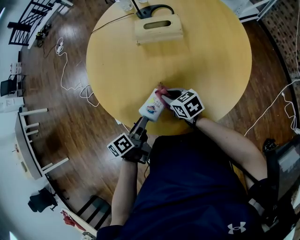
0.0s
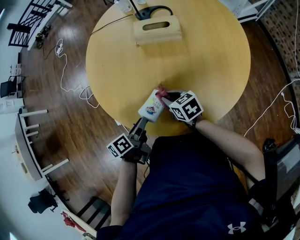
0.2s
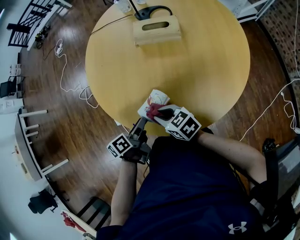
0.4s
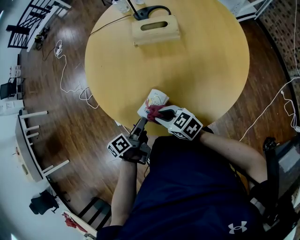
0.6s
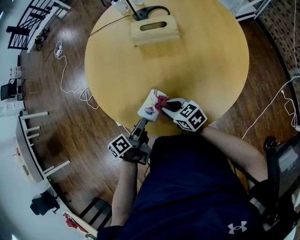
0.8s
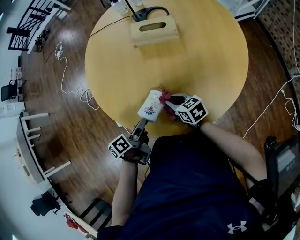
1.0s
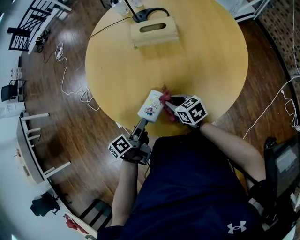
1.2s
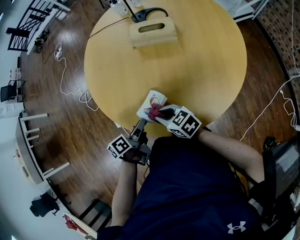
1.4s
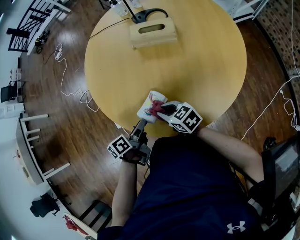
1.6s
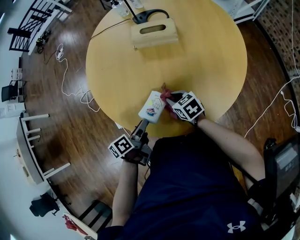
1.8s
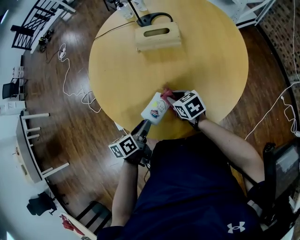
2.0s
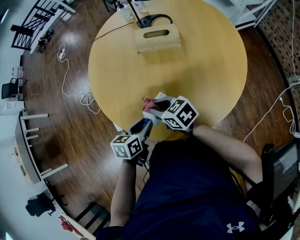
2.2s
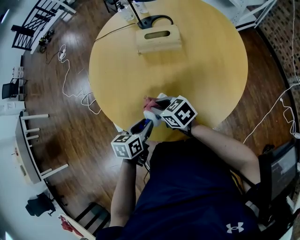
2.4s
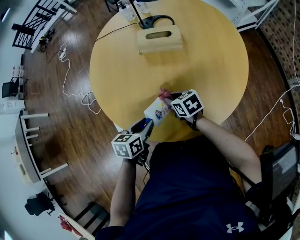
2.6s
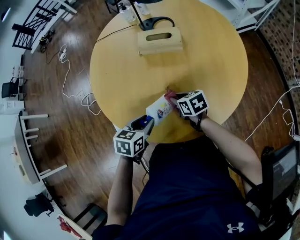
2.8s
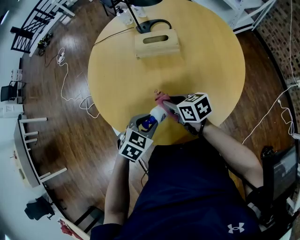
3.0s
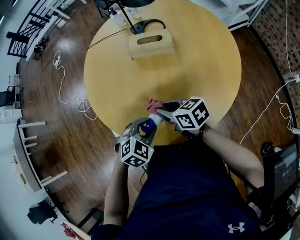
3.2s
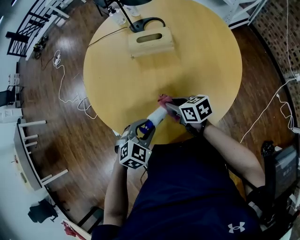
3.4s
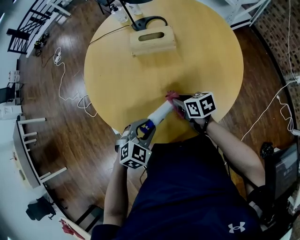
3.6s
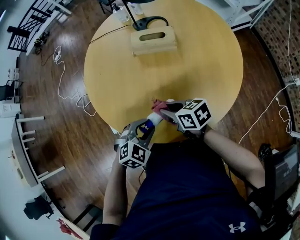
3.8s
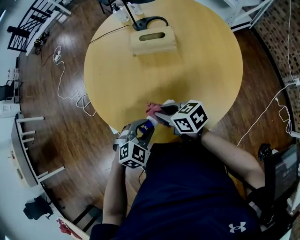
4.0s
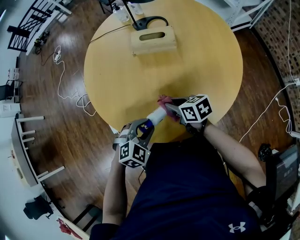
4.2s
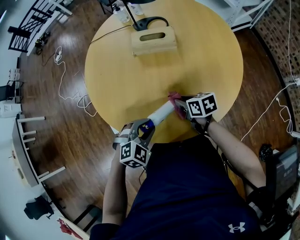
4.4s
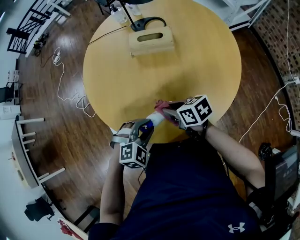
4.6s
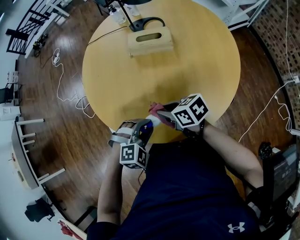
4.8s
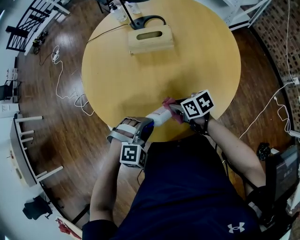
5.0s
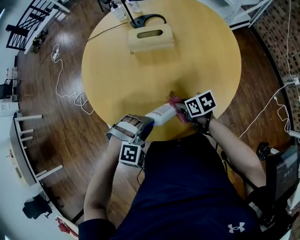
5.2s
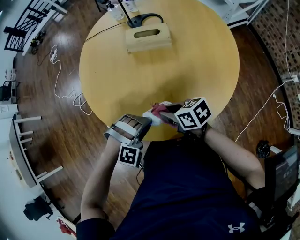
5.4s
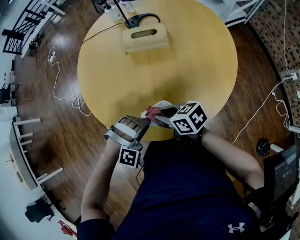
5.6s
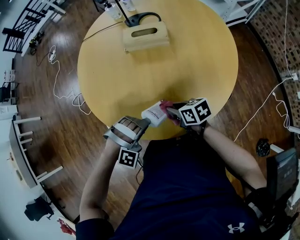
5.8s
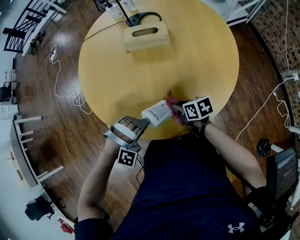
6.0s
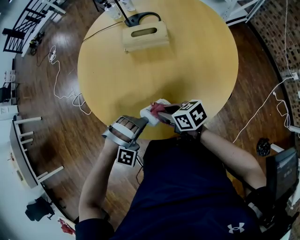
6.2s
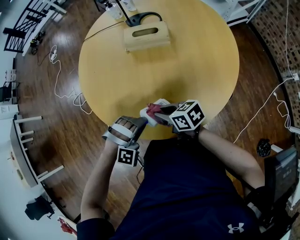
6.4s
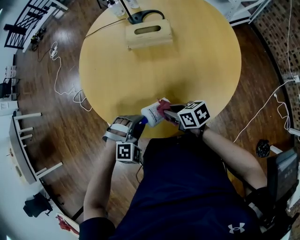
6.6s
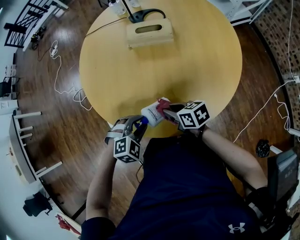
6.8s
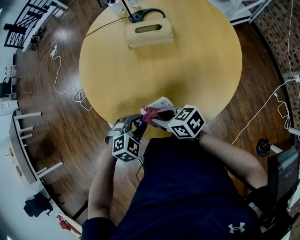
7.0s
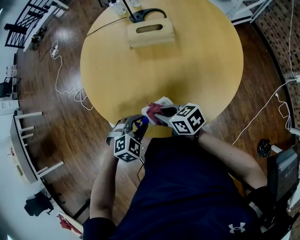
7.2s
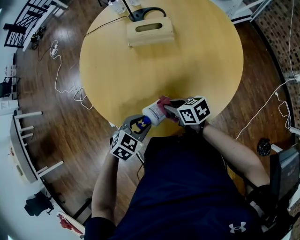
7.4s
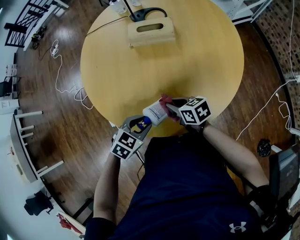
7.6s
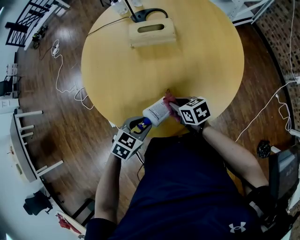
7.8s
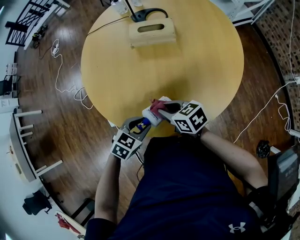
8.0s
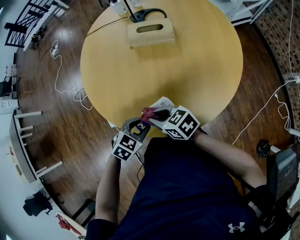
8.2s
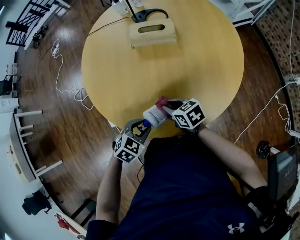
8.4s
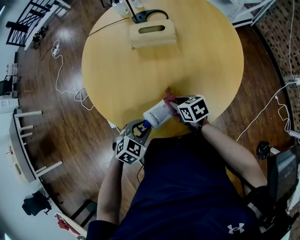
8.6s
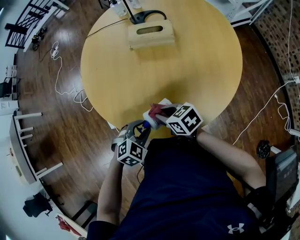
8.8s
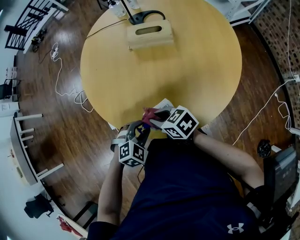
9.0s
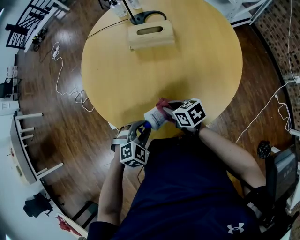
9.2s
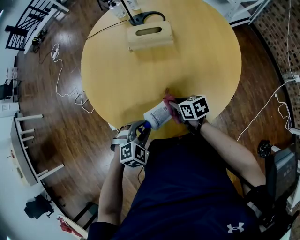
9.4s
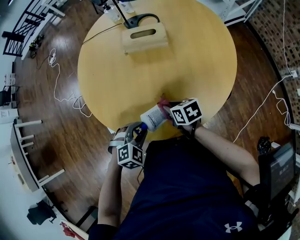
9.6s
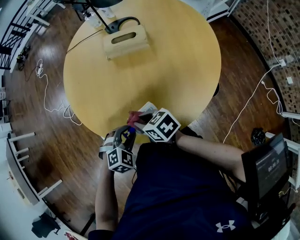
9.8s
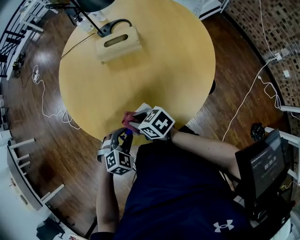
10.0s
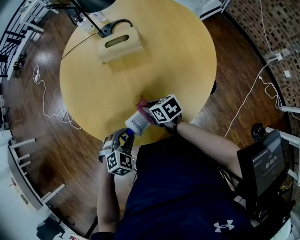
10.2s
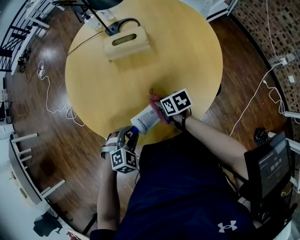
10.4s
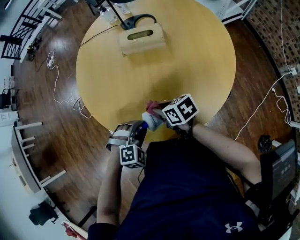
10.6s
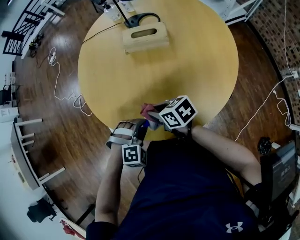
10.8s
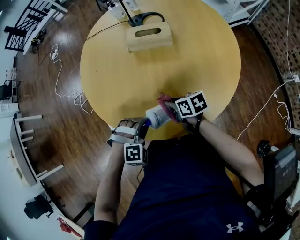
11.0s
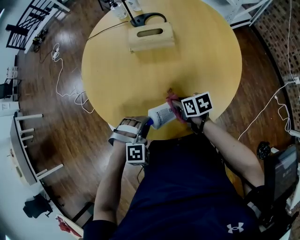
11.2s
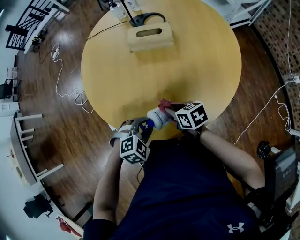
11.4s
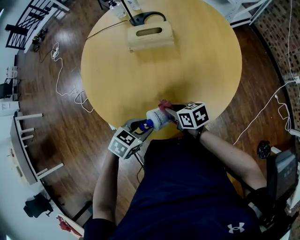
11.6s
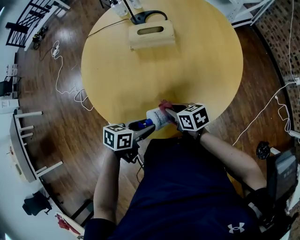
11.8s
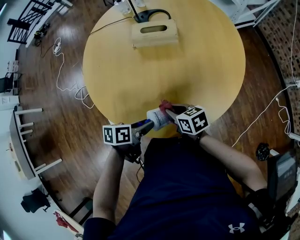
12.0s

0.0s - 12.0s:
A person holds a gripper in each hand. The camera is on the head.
0.0s - 1.6s: The right gripper goes left and right, roughly 5 cm each way, reversing 2 times.
1.6s - 3.0s: The left gripper is displaced to the right by some 10 cm, and twists some 80 degrees clockwise, seen from behind; the right gripper swings up and down, approximately 10 cm each way, with 3 reversals.
3.0s - 4.4s: The right gripper swings left and right, roughly 10 cm each way, with 2 reversals. The left gripper changes its angle by some 30 degrees.
4.4s - 6.0s: The right gripper swings up and down, roughly 10 cm each way, with 3 reversals. The left gripper rotates around the line of its fingers by roughly 60 degrees, clockwise from behind.
6.0s - 7.6s: The left gripper rolls counterclockwise, seen from behind, by approximately 90 degrees.
7.6s - 9.0s: The left gripper swivels some 30 degrees. Meanwhile the right gripper goes up and down, approximately 10 cm each way, reversing 2 times.
9.0s - 10.4s: The right gripper swings left and right, about 10 cm each way, with 2 reversals, and swivels approximately 30 degrees.
10.4s - 12.0s: The left gripper rolls counterclockwise, seen from behind, by some 90 degrees.

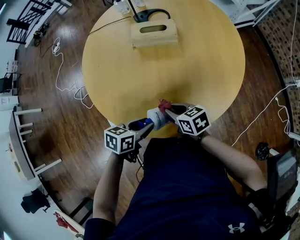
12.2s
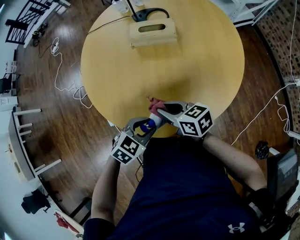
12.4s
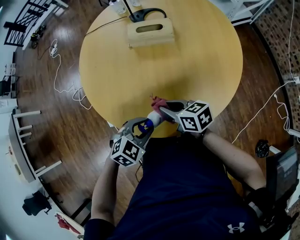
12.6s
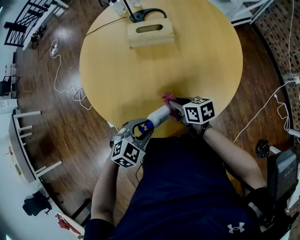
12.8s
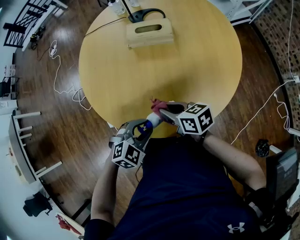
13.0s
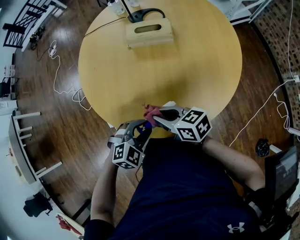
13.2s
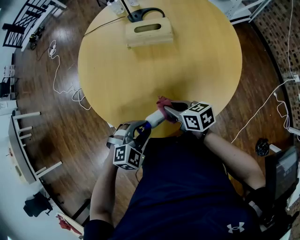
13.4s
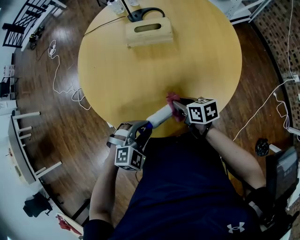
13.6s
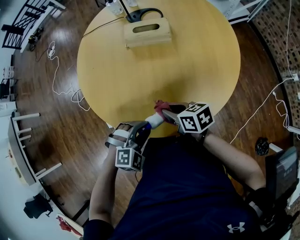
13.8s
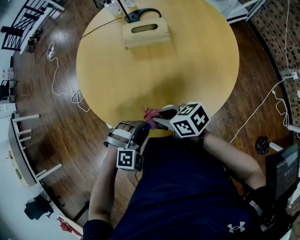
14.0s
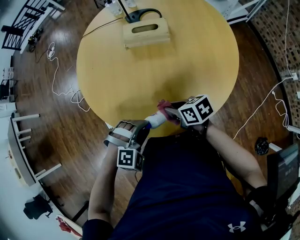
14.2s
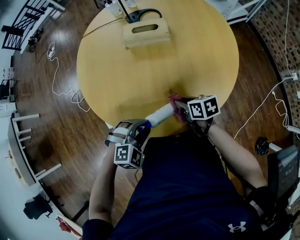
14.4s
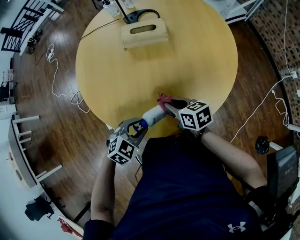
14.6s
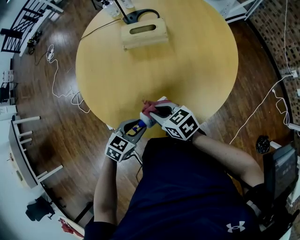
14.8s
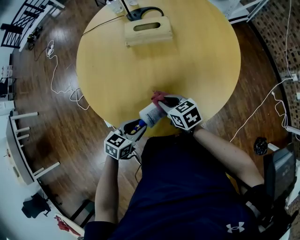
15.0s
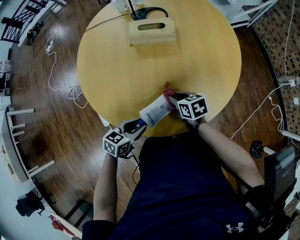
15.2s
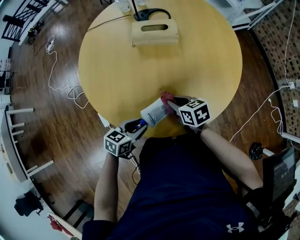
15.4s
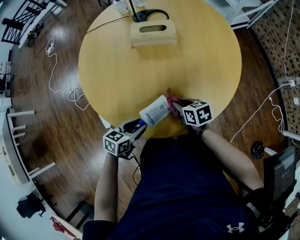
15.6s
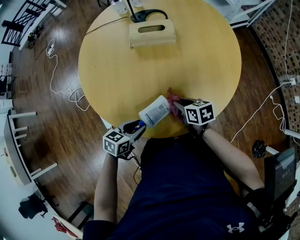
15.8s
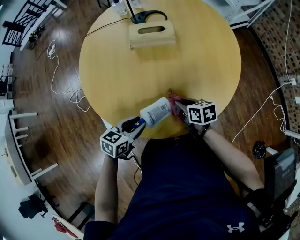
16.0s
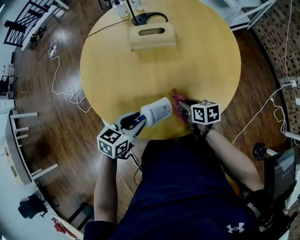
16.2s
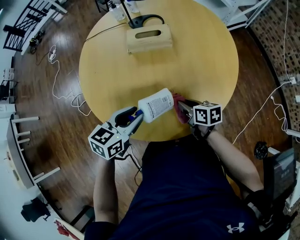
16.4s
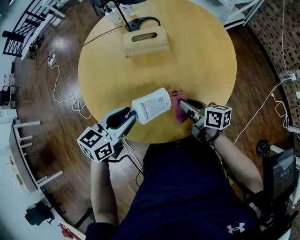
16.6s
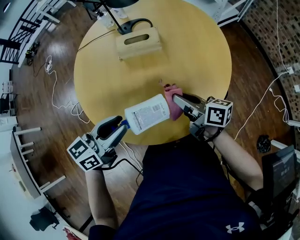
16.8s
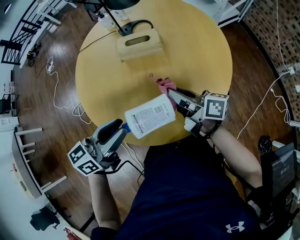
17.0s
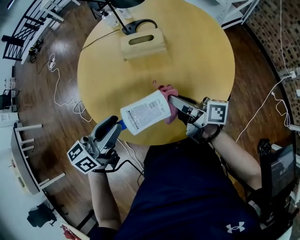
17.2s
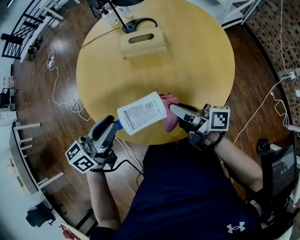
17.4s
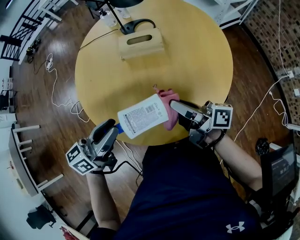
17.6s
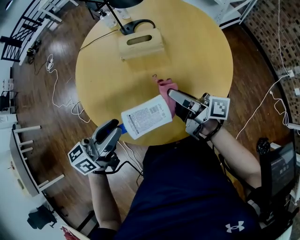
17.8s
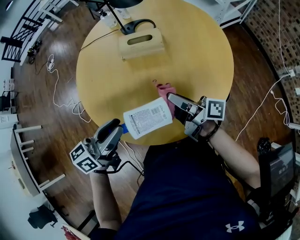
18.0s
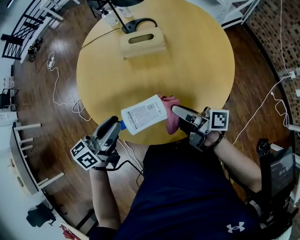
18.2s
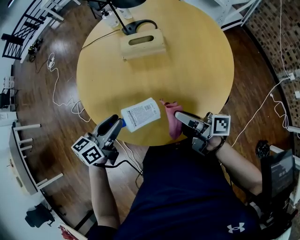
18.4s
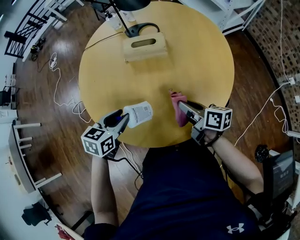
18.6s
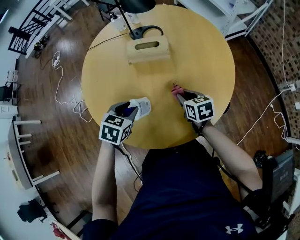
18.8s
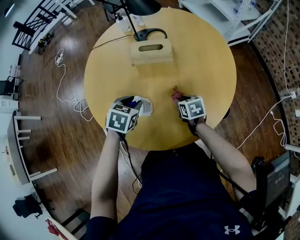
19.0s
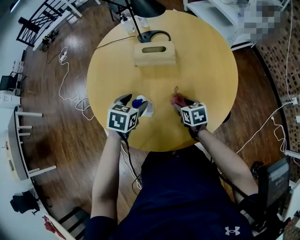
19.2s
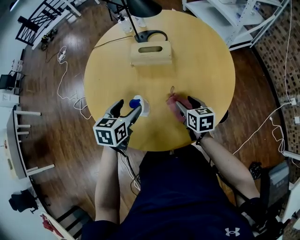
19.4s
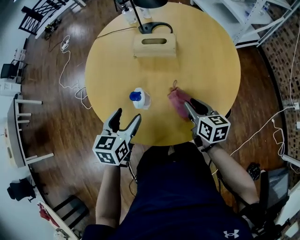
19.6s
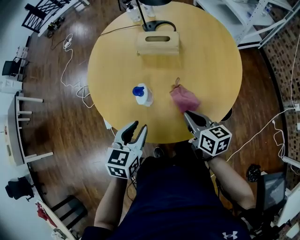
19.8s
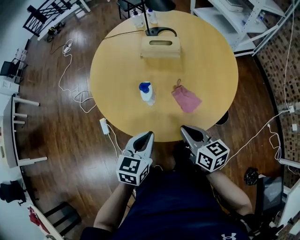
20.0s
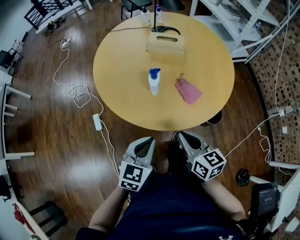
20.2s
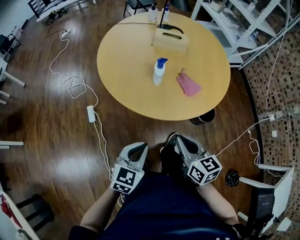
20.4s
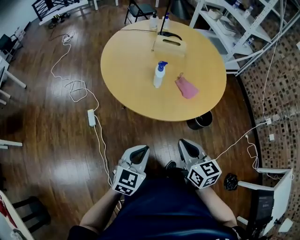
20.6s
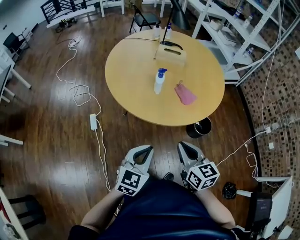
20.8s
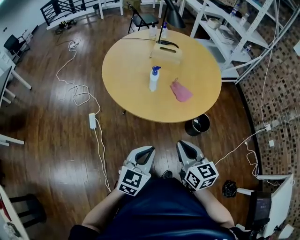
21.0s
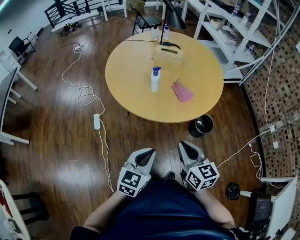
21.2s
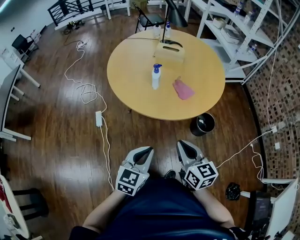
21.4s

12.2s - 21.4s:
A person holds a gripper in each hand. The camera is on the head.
12.2s - 13.8s: The left gripper twists approximately 80 degrees clockwise, seen from behind. The right gripper swings up and down, roughly 10 cm each way, with 4 reversals.
13.8s - 15.2s: The right gripper moves up and down over approximately 10 cm, changing direction 3 times, while the left gripper moves about 5 cm, and twists some 70 degrees counterclockwise, seen from behind.
15.2s - 16.8s: Both grippers move upward, approximately 20 cm. The right gripper tilts its fingers some 40 degrees upward.
16.8s - 18.4s: The left gripper moves roughly 5 cm, while the right gripper goes some 5 cm backward, and swivels some 30 degrees.
18.4s - 19.8s: The right gripper reaches about 15 cm downward, then returns, twists roughly 40 degrees counterclockwise, seen from behind, and opens and closes again; the left gripper travels to the right and backward by about 10 cm, rotates approximately 30 degrees, and opens and closes again.
19.8s - 21.4s: Both grippers move backward, roughly 30 cm. The right gripper turns by roughly 20 degrees. The left gripper closes.

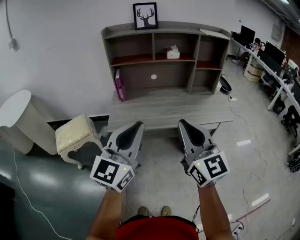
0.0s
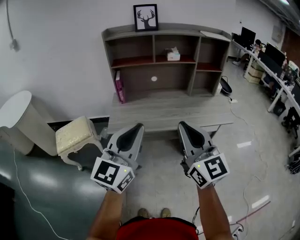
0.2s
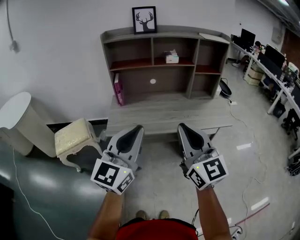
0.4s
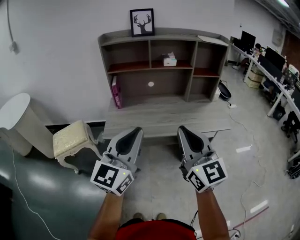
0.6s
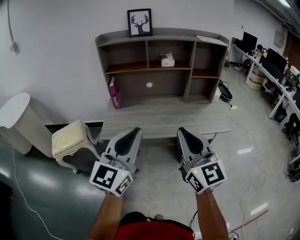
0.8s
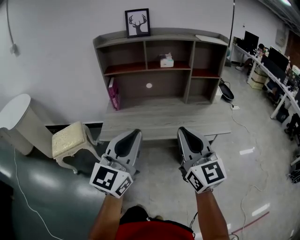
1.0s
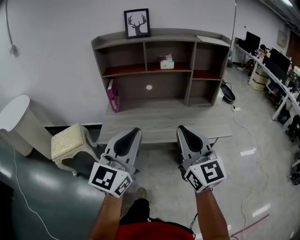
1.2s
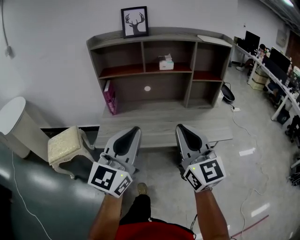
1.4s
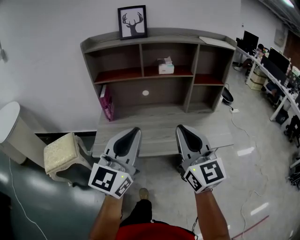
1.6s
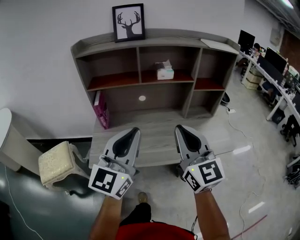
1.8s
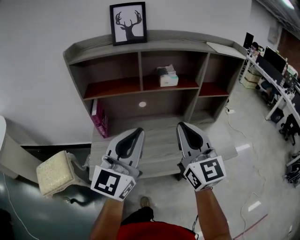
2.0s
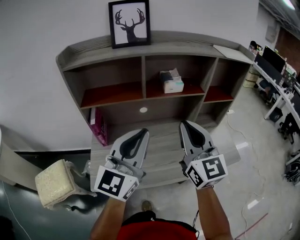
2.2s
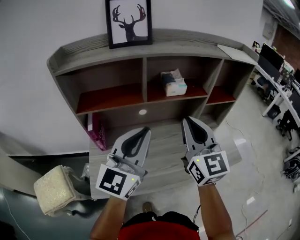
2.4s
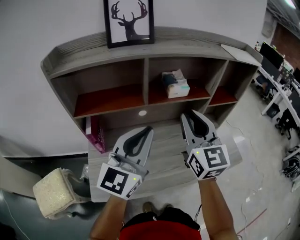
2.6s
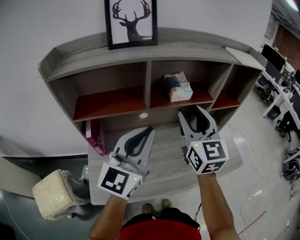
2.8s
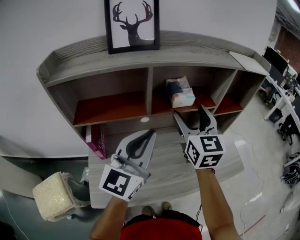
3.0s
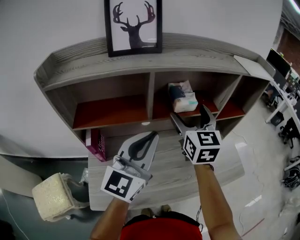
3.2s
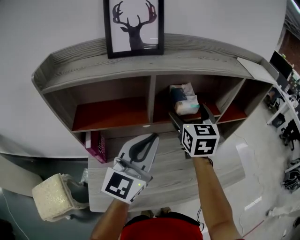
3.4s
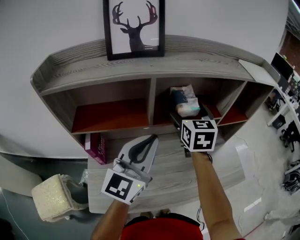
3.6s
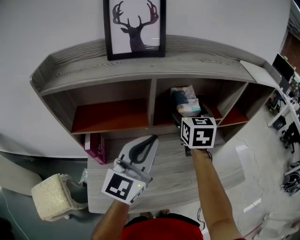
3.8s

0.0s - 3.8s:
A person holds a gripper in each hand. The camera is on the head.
0.0s - 1.2s: Both grippers travel together to the right and forward, some 10 cm.
1.2s - 2.6s: Both grippers move forward, about 40 cm.
2.6s - 3.8s: The right gripper moves forward, approximately 20 cm, rotates roughly 30 degrees, and opens up; the left gripper goes roughly 10 cm forward.
